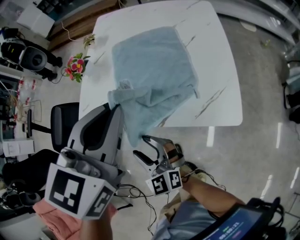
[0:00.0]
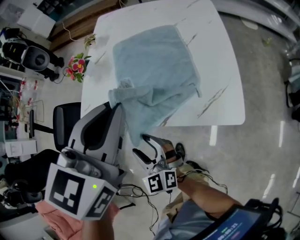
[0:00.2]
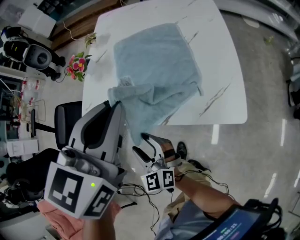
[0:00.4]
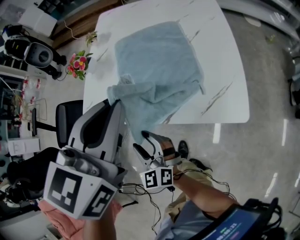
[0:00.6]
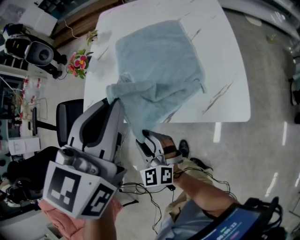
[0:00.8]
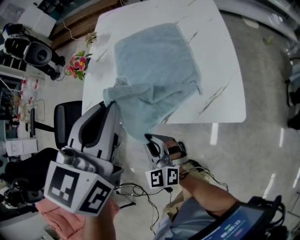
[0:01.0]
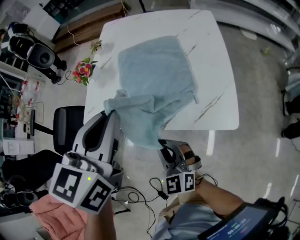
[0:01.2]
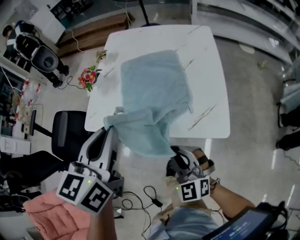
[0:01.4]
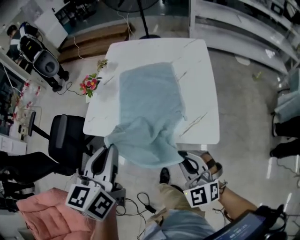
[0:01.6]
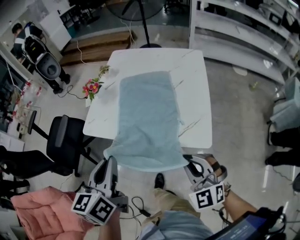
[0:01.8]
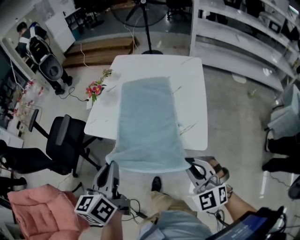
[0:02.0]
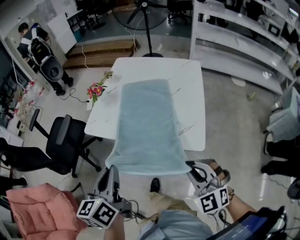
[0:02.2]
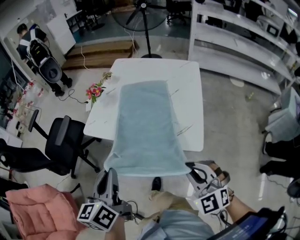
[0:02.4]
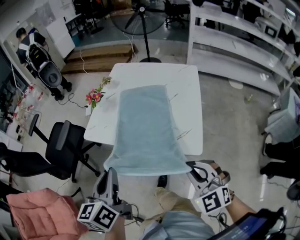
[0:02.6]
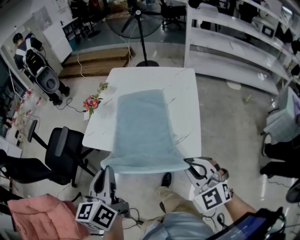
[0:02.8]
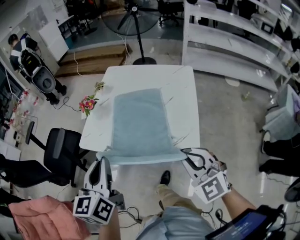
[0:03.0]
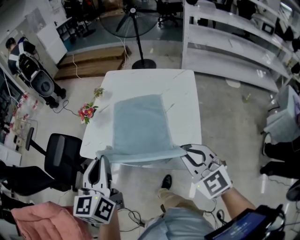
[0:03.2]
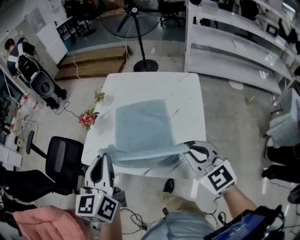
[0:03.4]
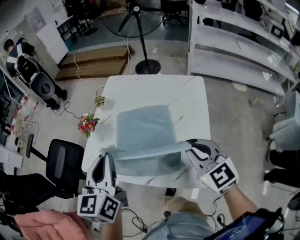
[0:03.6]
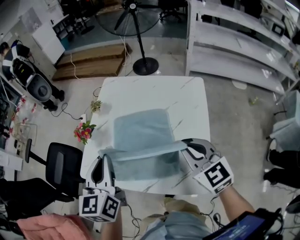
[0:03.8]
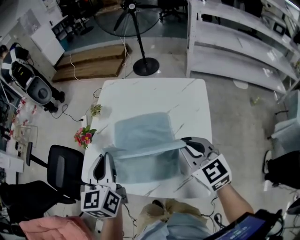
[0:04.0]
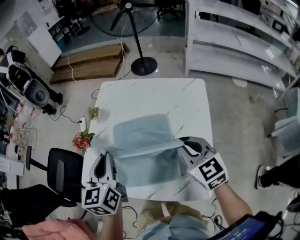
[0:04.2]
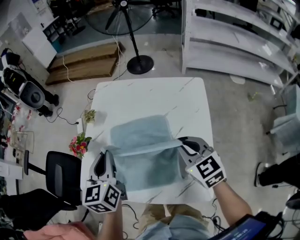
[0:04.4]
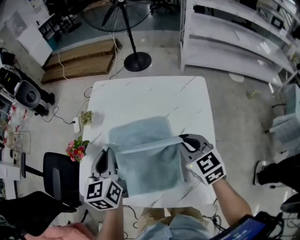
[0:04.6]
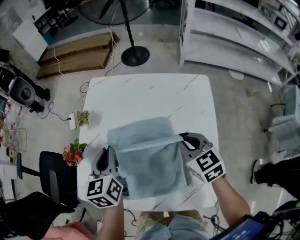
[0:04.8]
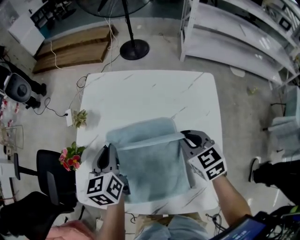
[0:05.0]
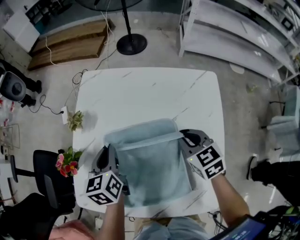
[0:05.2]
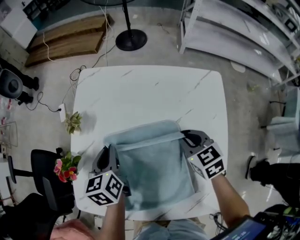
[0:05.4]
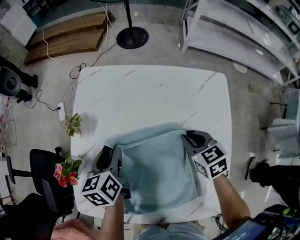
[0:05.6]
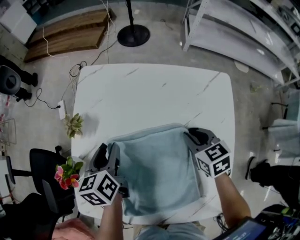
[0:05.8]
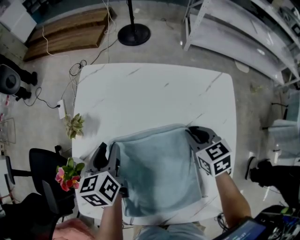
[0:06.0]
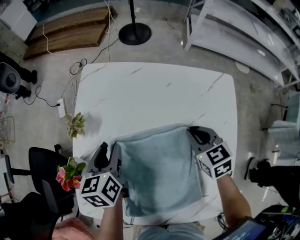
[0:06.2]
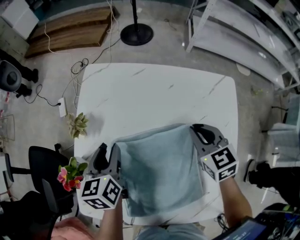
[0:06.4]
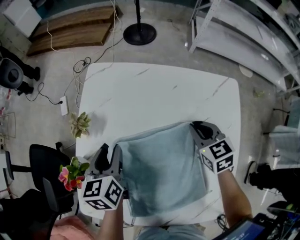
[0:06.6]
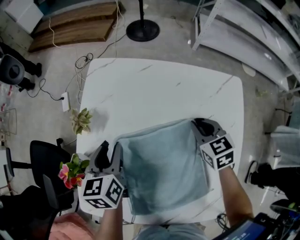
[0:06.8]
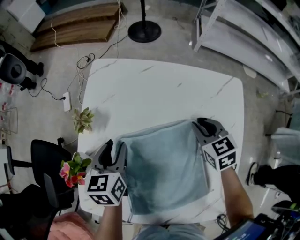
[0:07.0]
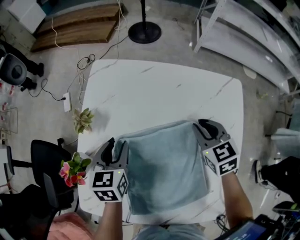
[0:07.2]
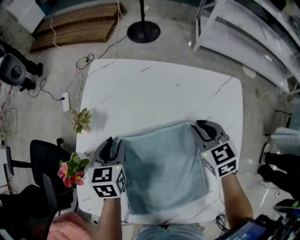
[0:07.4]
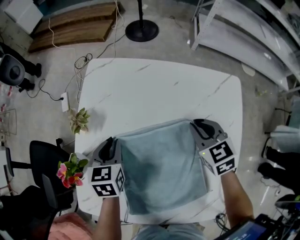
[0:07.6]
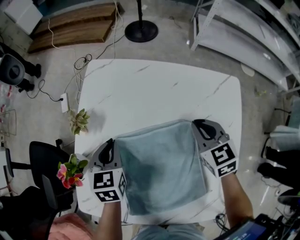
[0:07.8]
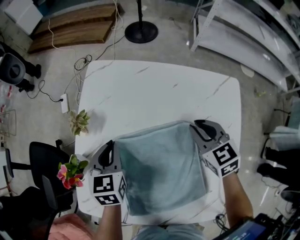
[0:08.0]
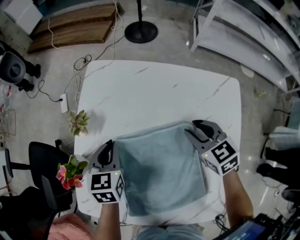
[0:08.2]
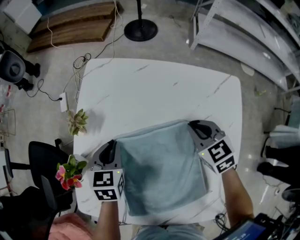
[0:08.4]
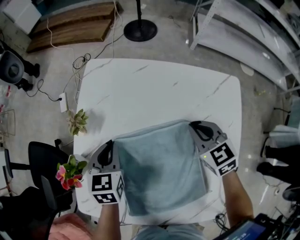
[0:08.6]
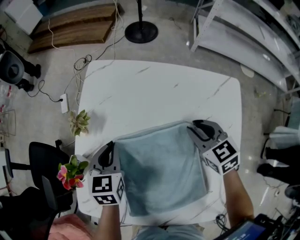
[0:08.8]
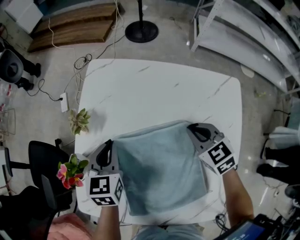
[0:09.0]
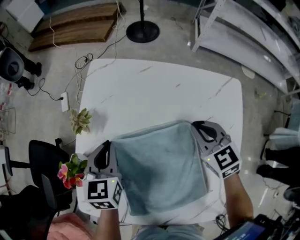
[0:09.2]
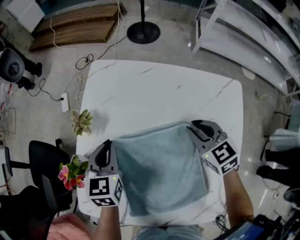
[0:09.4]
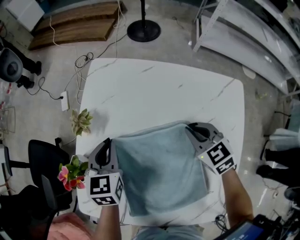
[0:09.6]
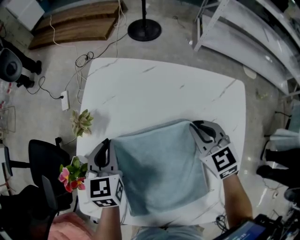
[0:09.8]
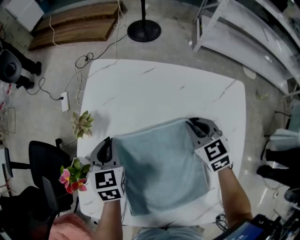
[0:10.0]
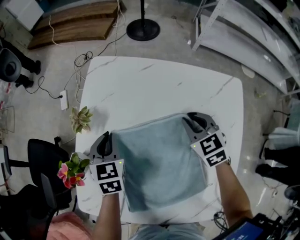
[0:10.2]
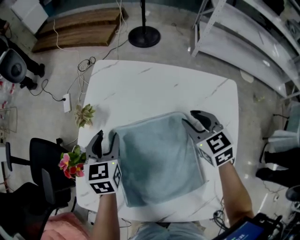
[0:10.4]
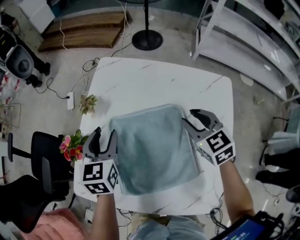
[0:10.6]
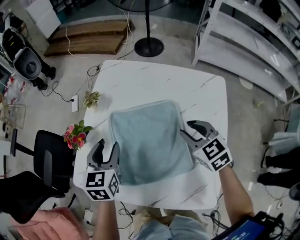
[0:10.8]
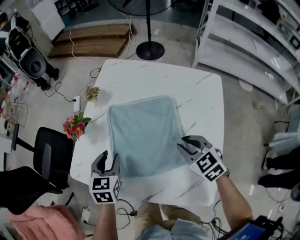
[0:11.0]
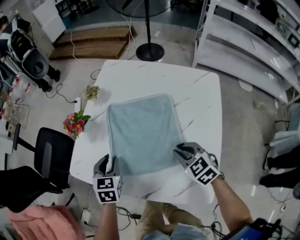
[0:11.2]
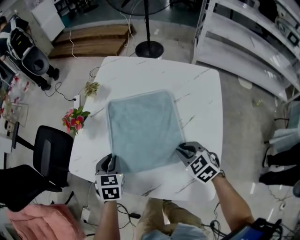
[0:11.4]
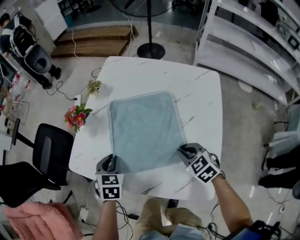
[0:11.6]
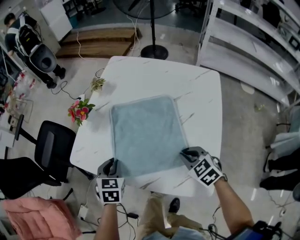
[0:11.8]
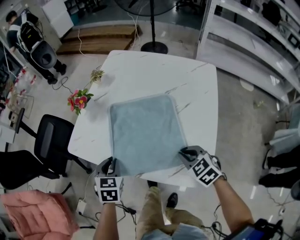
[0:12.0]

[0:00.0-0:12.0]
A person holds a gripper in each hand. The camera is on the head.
0:00.0 to 0:01.6: The left gripper heads backward, covering some 10 cm, and turns by roughly 30 degrees, while the right gripper goes roughly 20 cm to the right and upward, turns by approximately 20 degrees, and closes.
0:01.6 to 0:03.0: The right gripper travels upward and to the right by approximately 15 cm; the left gripper moves about 10 cm backward and comes back.
0:03.0 to 0:04.4: The grippers both shift forward by some 30 cm. The right gripper swivels roughly 30 degrees.
0:04.4 to 0:06.0: The right gripper heads downward and forward, covering approximately 20 cm, and turns by roughly 20 degrees. Meanwhile the left gripper is displaced forward and downward by approximately 25 cm, rotates roughly 20 degrees, and opens up.
0:06.0 to 0:07.6: The left gripper rotates roughly 20 degrees.
0:07.6 to 0:09.0: The grippers stay close to where they were, moving slightly.
0:09.0 to 0:10.4: The right gripper opens up. The left gripper opens.
0:10.4 to 0:12.0: The grippers both shift backward by about 35 cm. The left gripper closes its fingers, while the right gripper changes its angle by about 20 degrees, and closes.

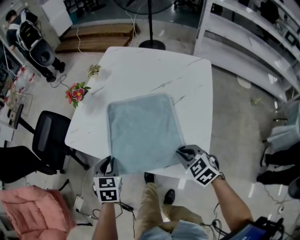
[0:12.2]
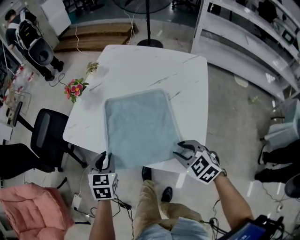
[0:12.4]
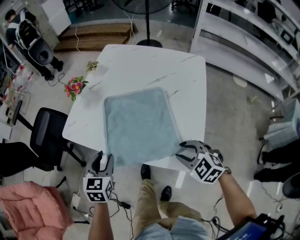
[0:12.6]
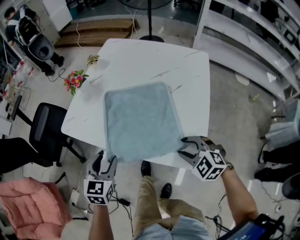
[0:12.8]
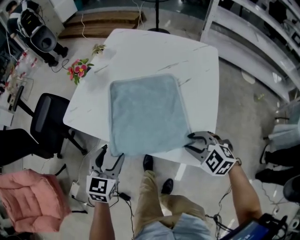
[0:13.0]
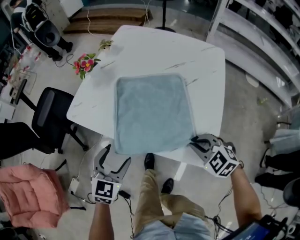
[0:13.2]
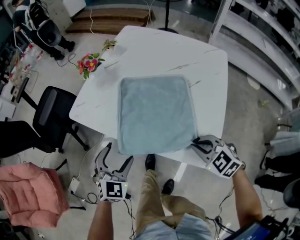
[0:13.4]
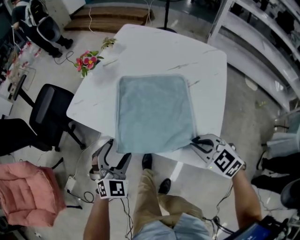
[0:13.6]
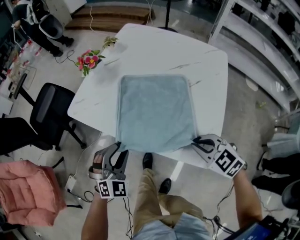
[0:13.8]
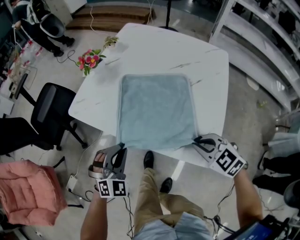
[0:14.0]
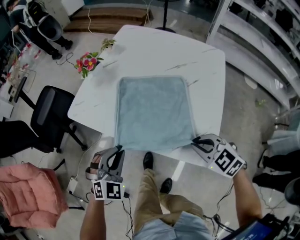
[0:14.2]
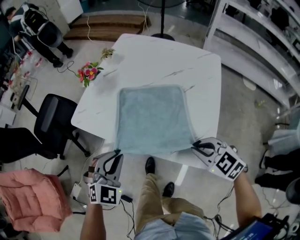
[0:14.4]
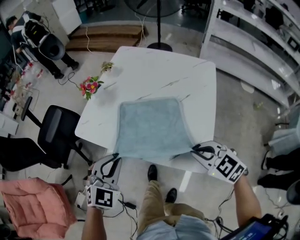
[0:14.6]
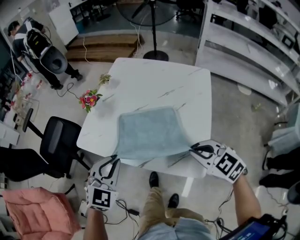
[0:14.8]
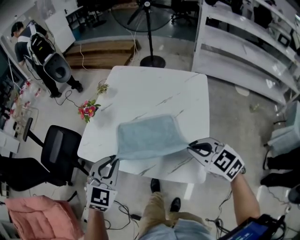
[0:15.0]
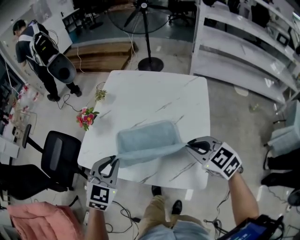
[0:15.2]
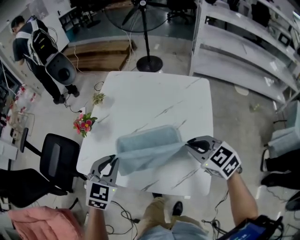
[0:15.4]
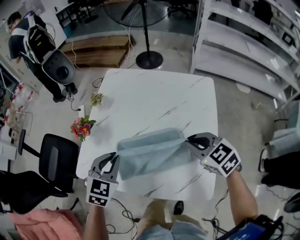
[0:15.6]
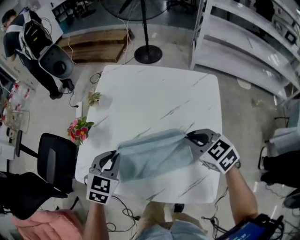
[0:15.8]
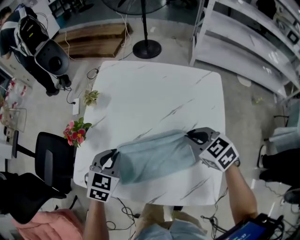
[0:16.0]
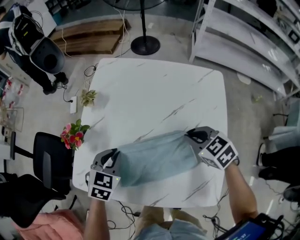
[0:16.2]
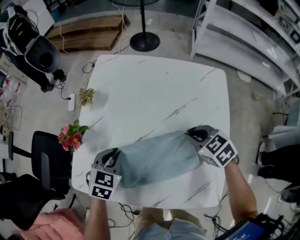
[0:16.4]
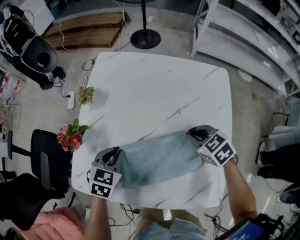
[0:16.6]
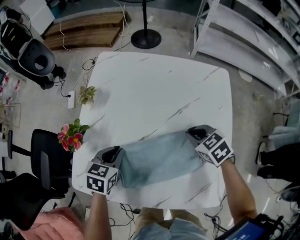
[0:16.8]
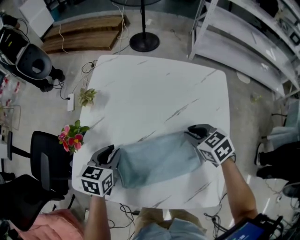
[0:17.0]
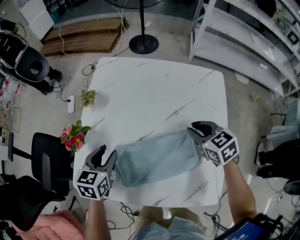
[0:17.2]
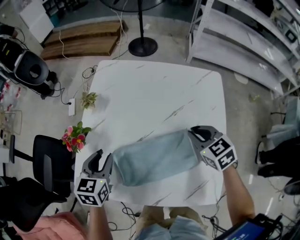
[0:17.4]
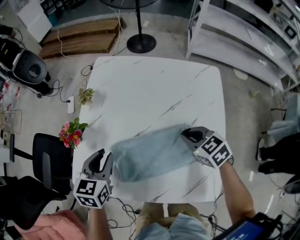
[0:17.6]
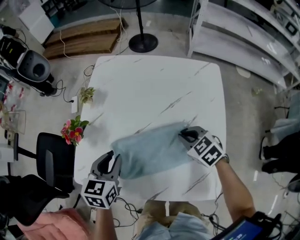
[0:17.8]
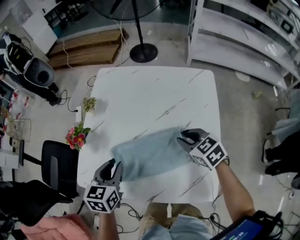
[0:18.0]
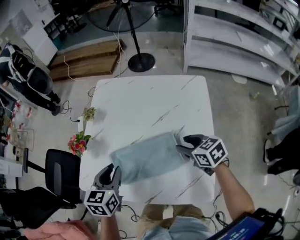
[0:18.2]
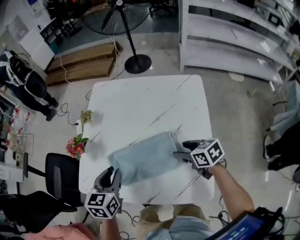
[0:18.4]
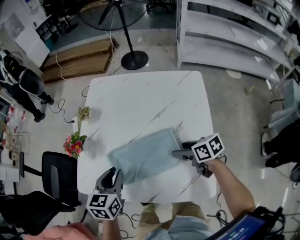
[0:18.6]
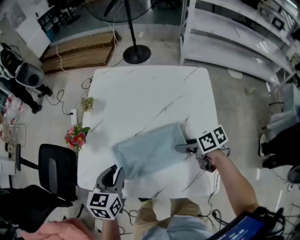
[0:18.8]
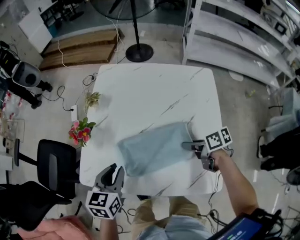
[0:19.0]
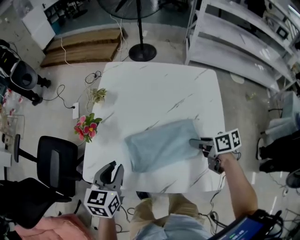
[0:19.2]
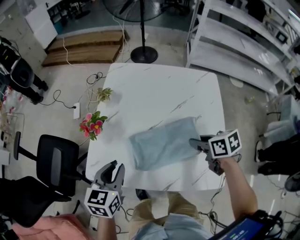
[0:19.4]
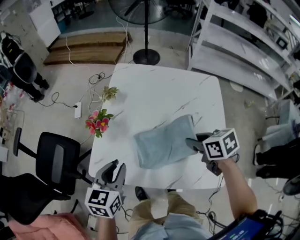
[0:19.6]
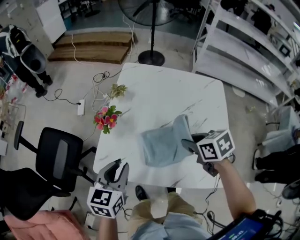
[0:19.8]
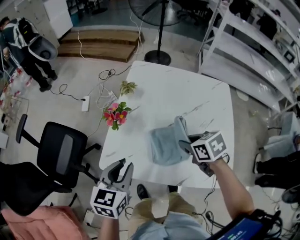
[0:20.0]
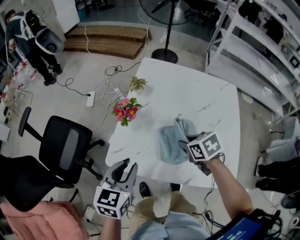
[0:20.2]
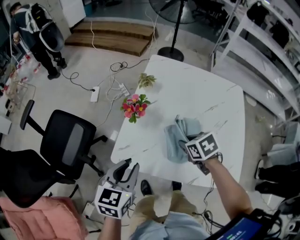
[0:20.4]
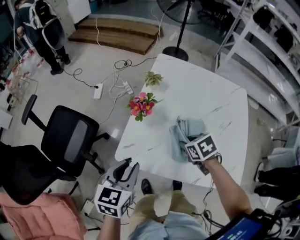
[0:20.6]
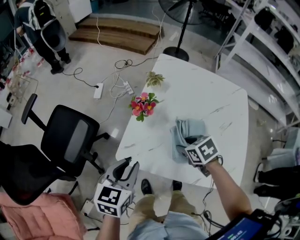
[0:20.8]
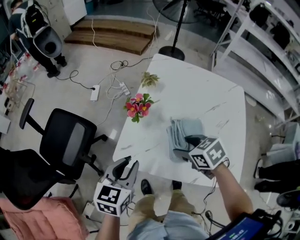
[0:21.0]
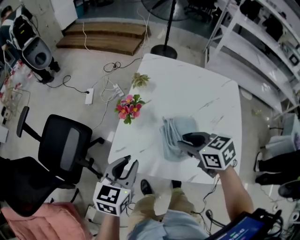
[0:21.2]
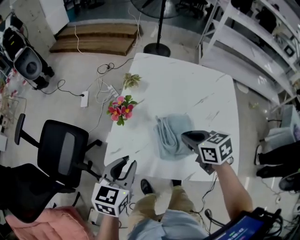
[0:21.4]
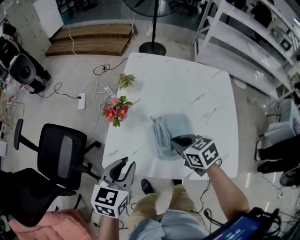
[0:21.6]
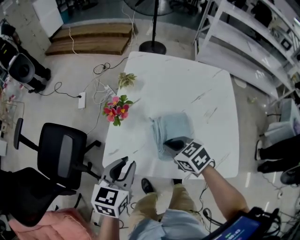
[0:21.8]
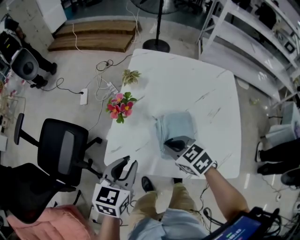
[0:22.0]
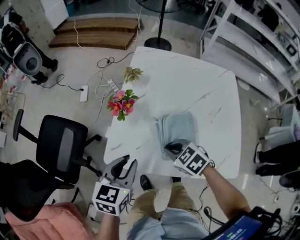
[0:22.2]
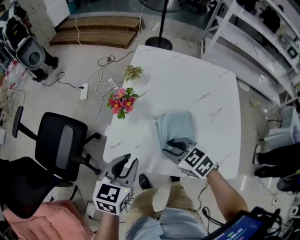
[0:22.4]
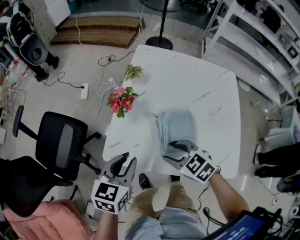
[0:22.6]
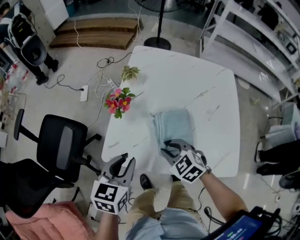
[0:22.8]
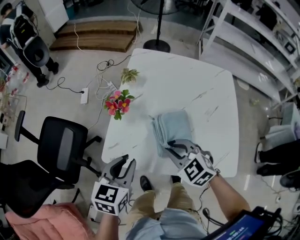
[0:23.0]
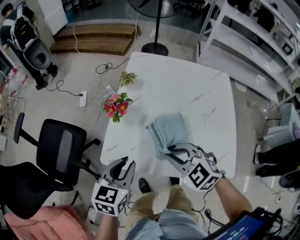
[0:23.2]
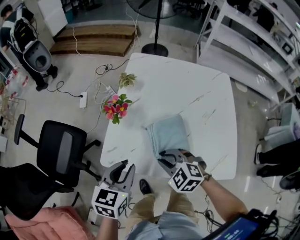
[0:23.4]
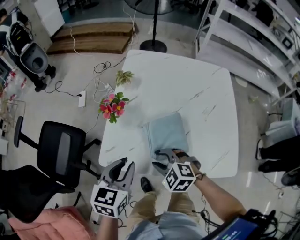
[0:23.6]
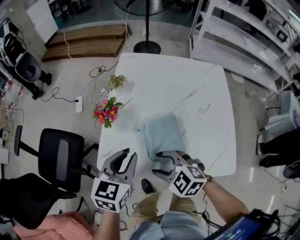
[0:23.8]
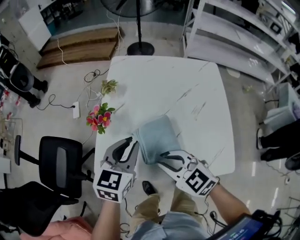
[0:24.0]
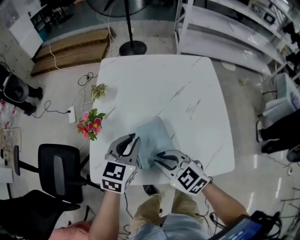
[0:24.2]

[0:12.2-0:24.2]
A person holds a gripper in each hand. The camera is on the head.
0:12.2 to 0:13.8: The right gripper opens, then closes once more, while the left gripper is displaced backward by roughly 5 cm, rolls clockwise, seen from behind, by approximately 40 degrees, and opens up.
0:13.8 to 0:15.2: Both grippers travel together upward and forward, about 15 cm. The right gripper turns by some 20 degrees. The left gripper swivels roughly 20 degrees, and closes its fingers.
0:15.2 to 0:16.6: Both grippers move forward and downward, about 20 cm. The right gripper swivels approximately 20 degrees; the left gripper rotates approximately 30 degrees.
0:16.6 to 0:18.2: The right gripper is displaced backward by approximately 5 cm, changes its angle by about 20 degrees, and opens its fingers. Meanwhile the left gripper is displaced upward and backward by approximately 15 cm, and changes its angle by approximately 20 degrees.
0:18.2 to 0:19.8: The right gripper is displaced to the left and upward by about 15 cm, and closes, while the left gripper travels to the left by some 10 cm.
0:19.8 to 0:21.2: The right gripper moves to the left, roughly 10 cm, and opens, then closes once more; the left gripper goes roughly 5 cm to the left.
0:21.2 to 0:22.6: The right gripper heads downward and backward, covering some 10 cm, changes its angle by approximately 20 degrees, and closes, then opens again.
0:22.6 to 0:24.2: The left gripper travels to the right and forward by about 15 cm; the right gripper goes up and down, some 10 cm each way, reversing 3 times, and closes.
